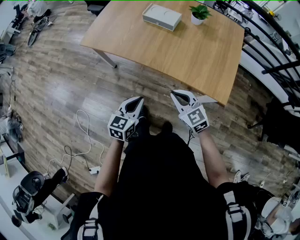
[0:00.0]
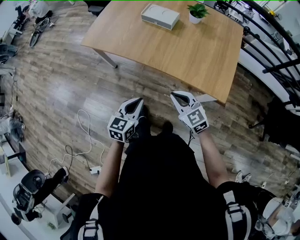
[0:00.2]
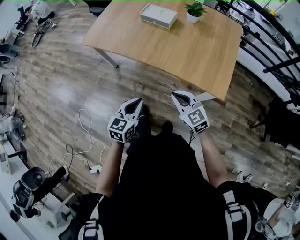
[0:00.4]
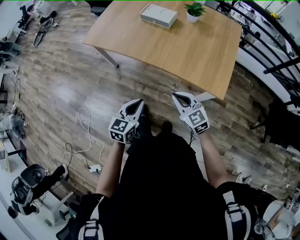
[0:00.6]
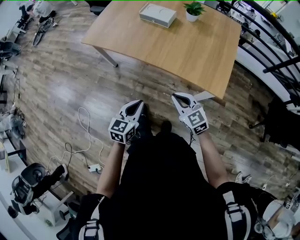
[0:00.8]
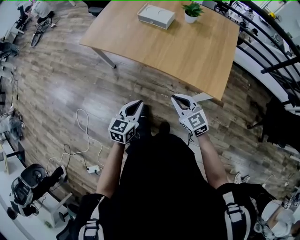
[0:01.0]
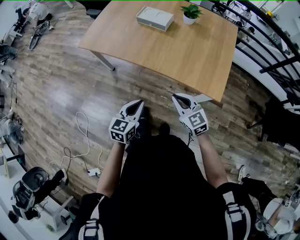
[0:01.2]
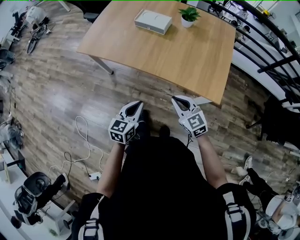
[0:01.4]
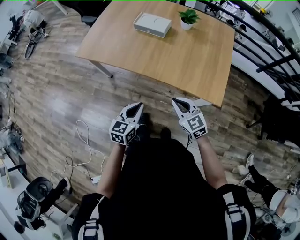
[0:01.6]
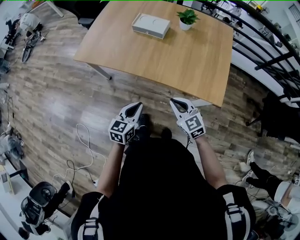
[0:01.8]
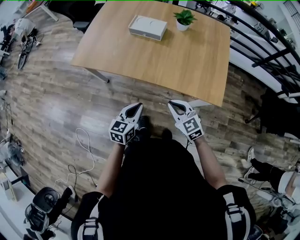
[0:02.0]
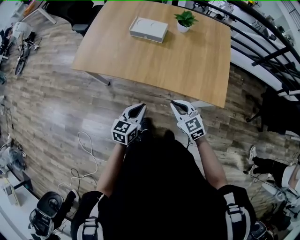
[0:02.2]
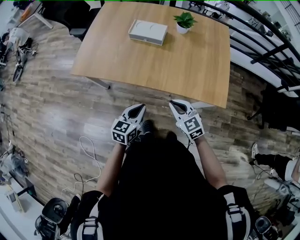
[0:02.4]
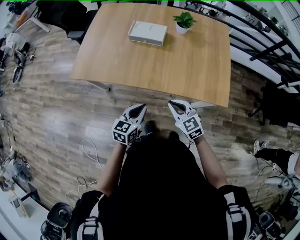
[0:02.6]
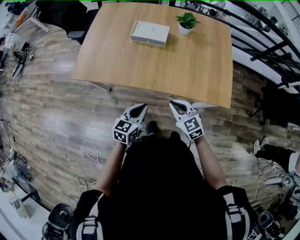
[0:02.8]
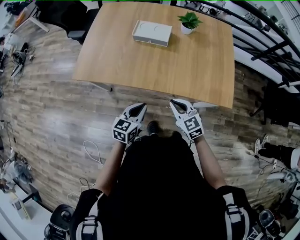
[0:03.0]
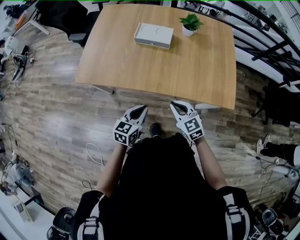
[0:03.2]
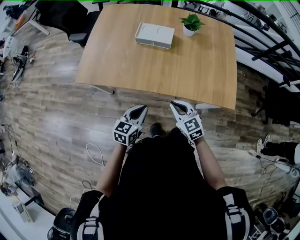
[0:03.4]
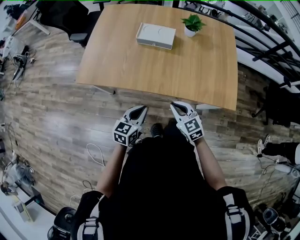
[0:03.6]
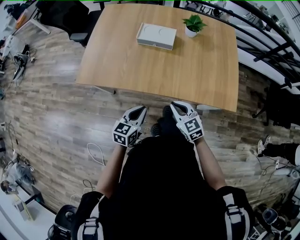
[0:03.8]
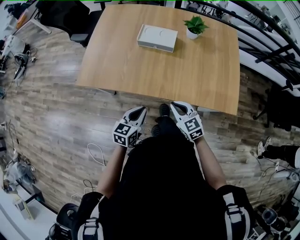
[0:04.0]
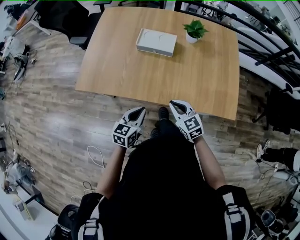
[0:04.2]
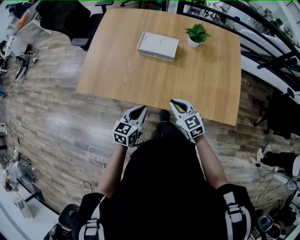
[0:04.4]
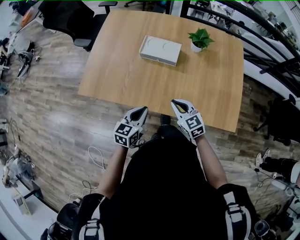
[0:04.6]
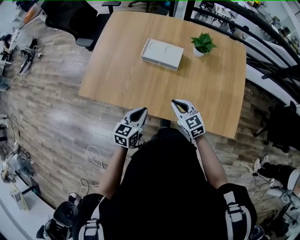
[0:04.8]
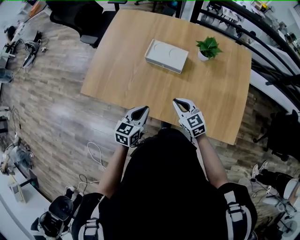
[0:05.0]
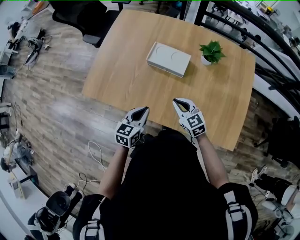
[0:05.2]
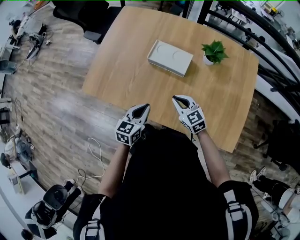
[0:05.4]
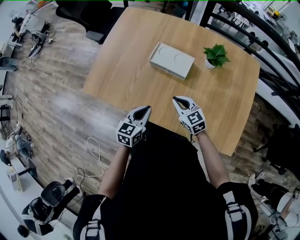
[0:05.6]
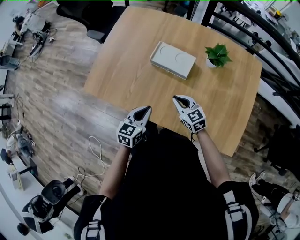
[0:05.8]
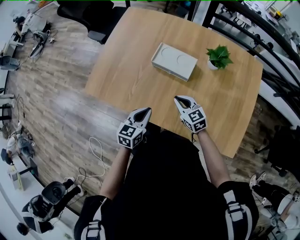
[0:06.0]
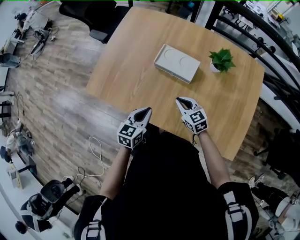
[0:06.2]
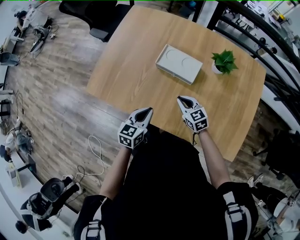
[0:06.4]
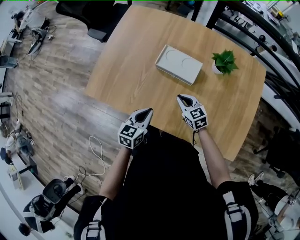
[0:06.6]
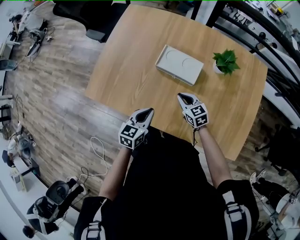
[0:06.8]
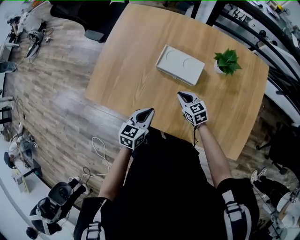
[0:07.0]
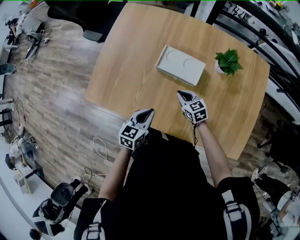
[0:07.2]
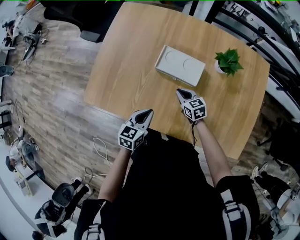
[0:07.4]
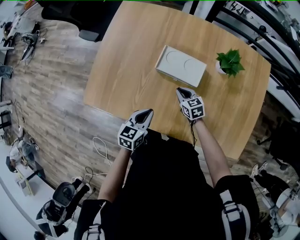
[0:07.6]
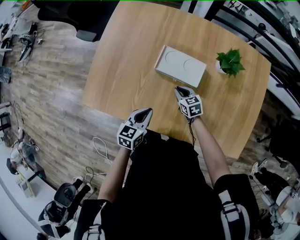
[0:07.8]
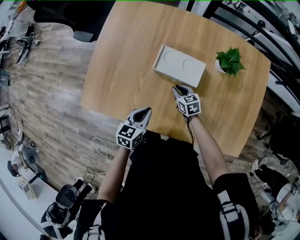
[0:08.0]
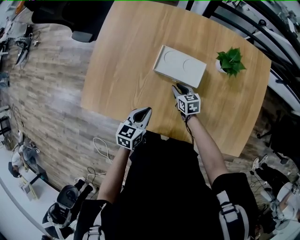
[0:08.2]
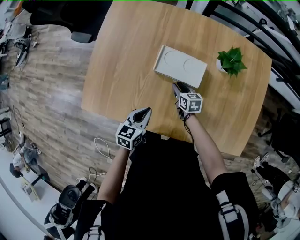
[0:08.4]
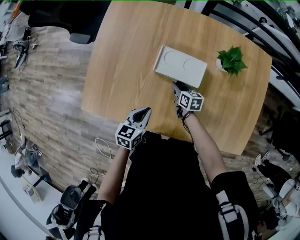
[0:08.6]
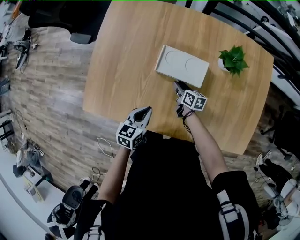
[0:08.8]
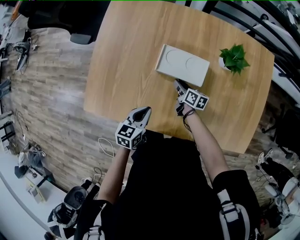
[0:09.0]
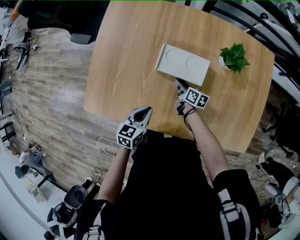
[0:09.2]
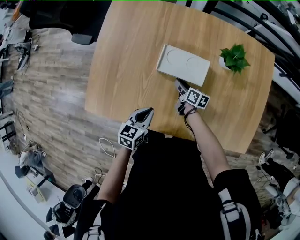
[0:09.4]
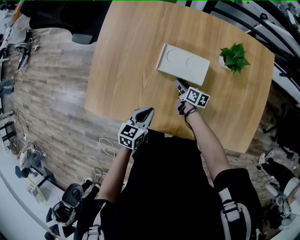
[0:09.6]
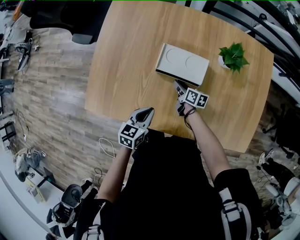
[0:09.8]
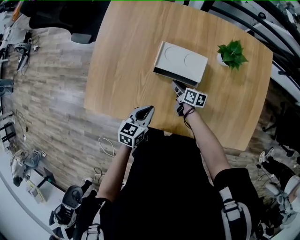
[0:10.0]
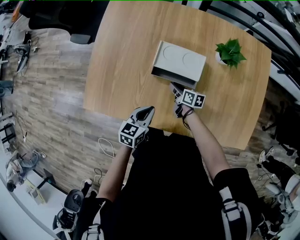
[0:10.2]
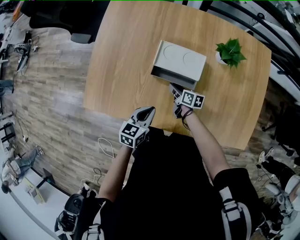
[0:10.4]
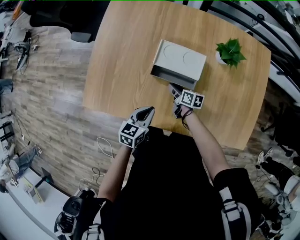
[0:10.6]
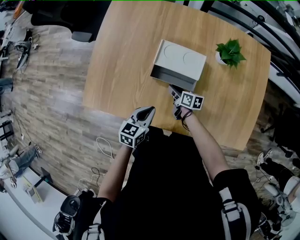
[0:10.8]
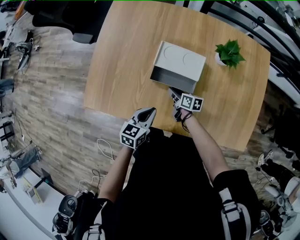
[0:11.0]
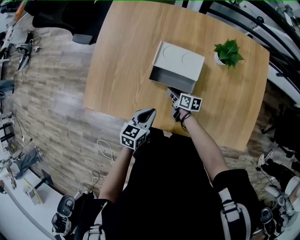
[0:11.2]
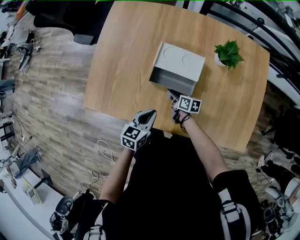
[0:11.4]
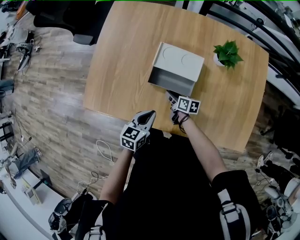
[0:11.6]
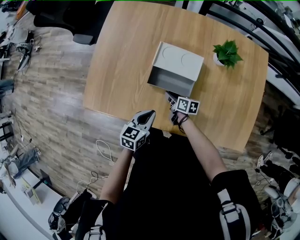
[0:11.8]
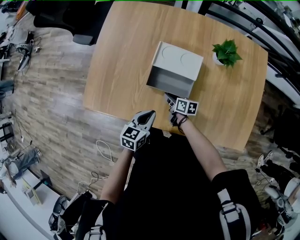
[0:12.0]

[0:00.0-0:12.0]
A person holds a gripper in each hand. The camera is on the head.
0.0 to 1.6 s: The left gripper moves about 10 cm backward and comes back.
1.6 to 3.0 s: The right gripper travels to the left and forward by about 15 cm, while the left gripper travels forward and to the left by roughly 15 cm.
3.0 to 4.4 s: The two grippers go about 10 cm forward.
4.4 to 6.0 s: Both grippers move forward, about 15 cm.
6.0 to 7.6 s: The right gripper goes some 15 cm forward and downward, while the left gripper moves forward, approximately 10 cm.
7.6 to 9.0 s: The left gripper changes place by roughly 5 cm, while the right gripper travels forward by some 5 cm, and rolls clockwise, seen from behind, by roughly 50 degrees.
9.0 to 10.4 s: The right gripper travels backward by some 5 cm.
10.4 to 12.0 s: The right gripper travels backward by about 5 cm.

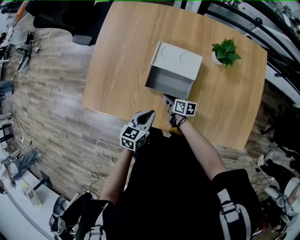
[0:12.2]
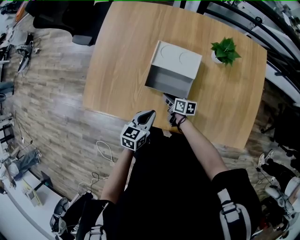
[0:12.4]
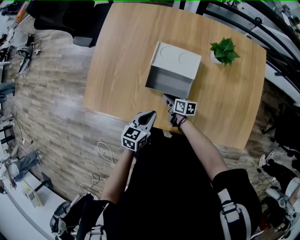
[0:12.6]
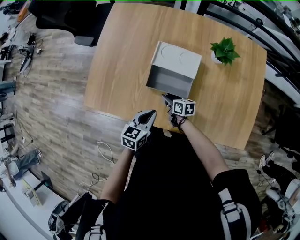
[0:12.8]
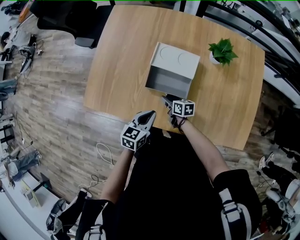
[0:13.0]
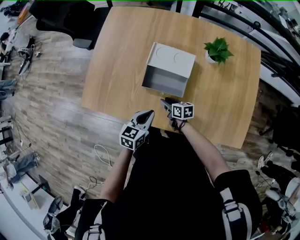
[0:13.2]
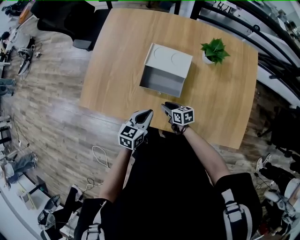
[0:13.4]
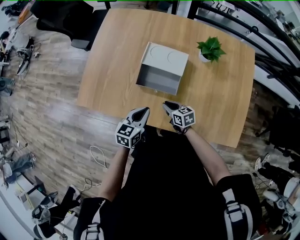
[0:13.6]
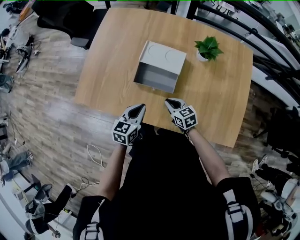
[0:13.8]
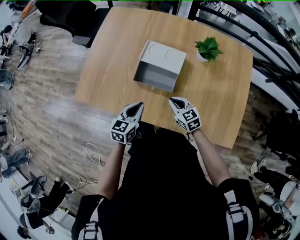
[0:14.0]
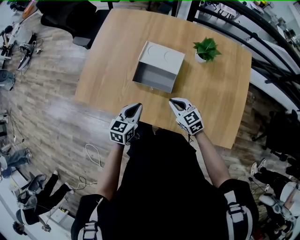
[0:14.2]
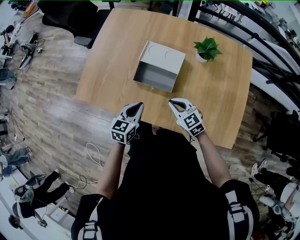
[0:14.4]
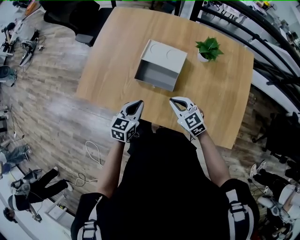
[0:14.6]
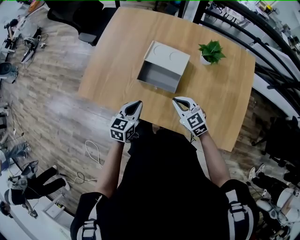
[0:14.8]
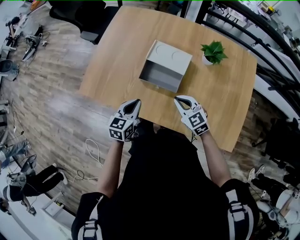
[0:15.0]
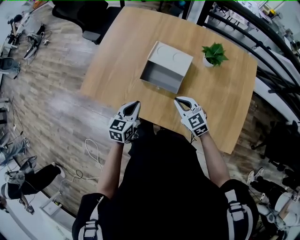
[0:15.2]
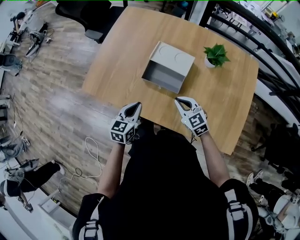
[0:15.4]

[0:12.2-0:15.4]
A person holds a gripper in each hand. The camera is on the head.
12.2 to 13.8 s: The right gripper travels upward, to the right and backward by about 15 cm, and rolls counterclockwise, seen from behind, by about 40 degrees.
13.8 to 15.4 s: The right gripper moves upward, some 10 cm, and turns by approximately 30 degrees. Meanwhile the left gripper ends up approximately 5 cm from where it was.

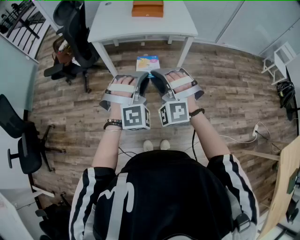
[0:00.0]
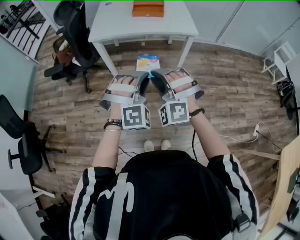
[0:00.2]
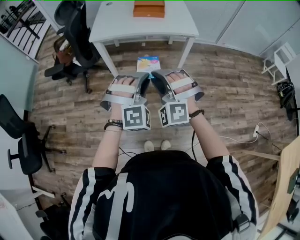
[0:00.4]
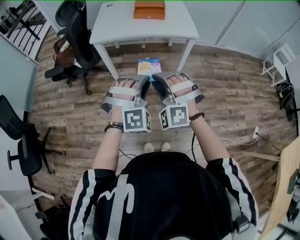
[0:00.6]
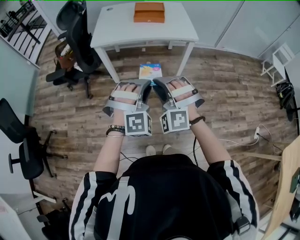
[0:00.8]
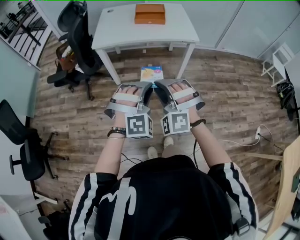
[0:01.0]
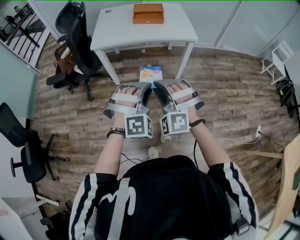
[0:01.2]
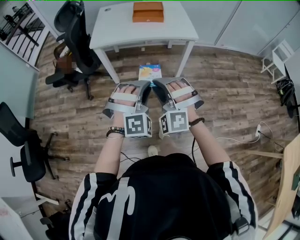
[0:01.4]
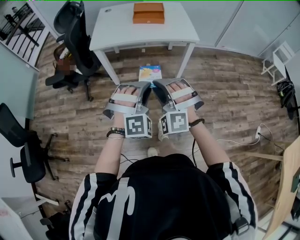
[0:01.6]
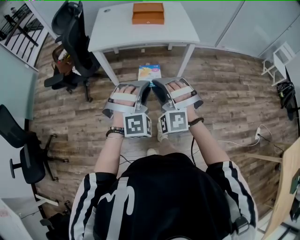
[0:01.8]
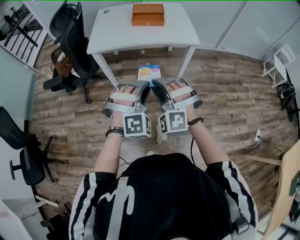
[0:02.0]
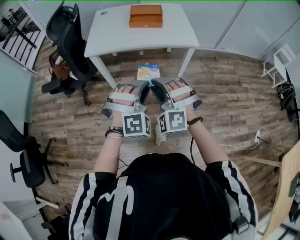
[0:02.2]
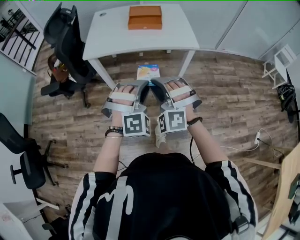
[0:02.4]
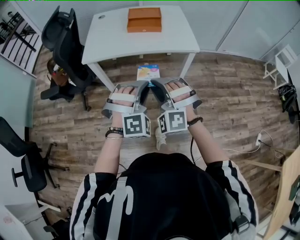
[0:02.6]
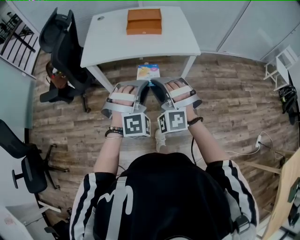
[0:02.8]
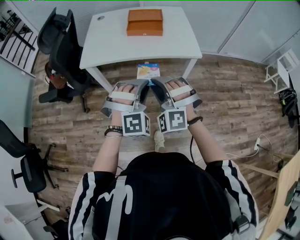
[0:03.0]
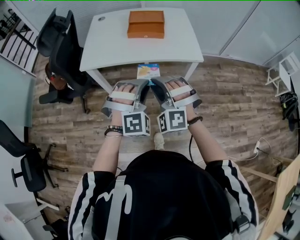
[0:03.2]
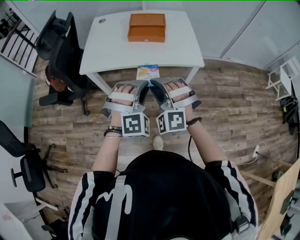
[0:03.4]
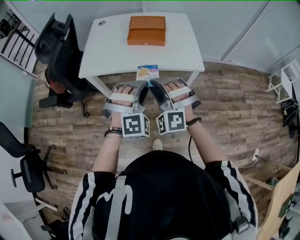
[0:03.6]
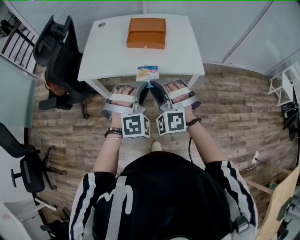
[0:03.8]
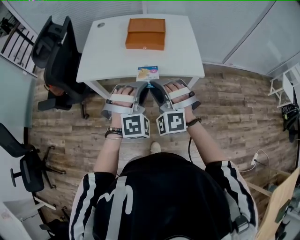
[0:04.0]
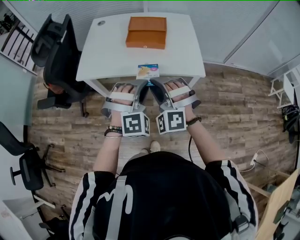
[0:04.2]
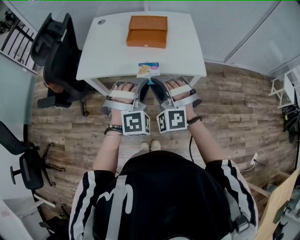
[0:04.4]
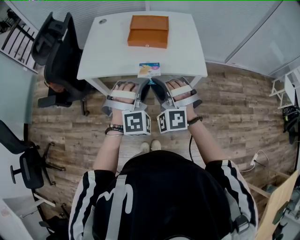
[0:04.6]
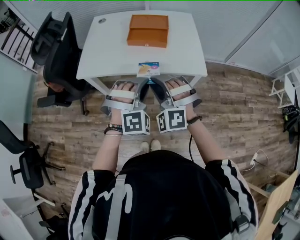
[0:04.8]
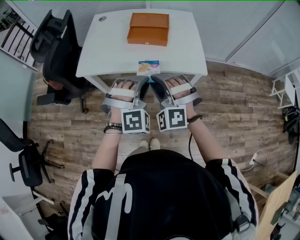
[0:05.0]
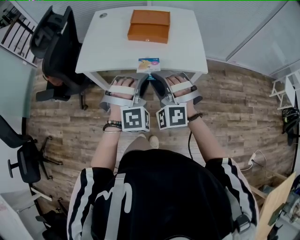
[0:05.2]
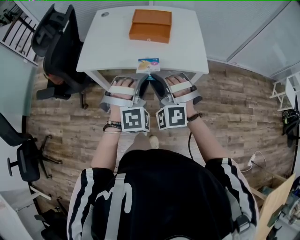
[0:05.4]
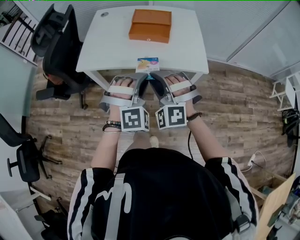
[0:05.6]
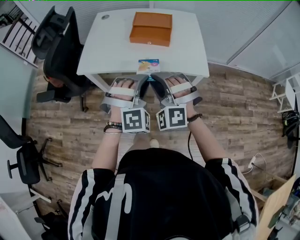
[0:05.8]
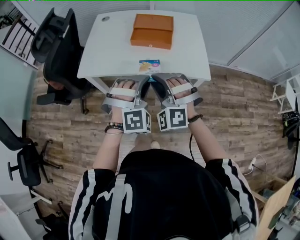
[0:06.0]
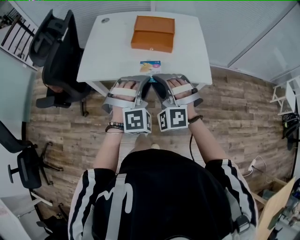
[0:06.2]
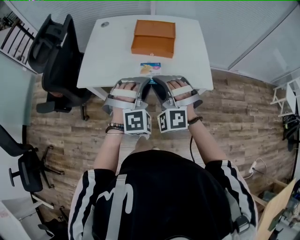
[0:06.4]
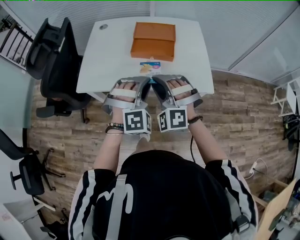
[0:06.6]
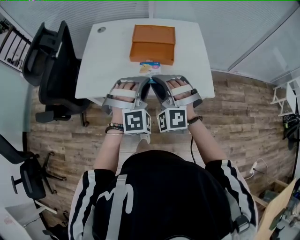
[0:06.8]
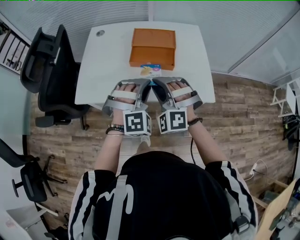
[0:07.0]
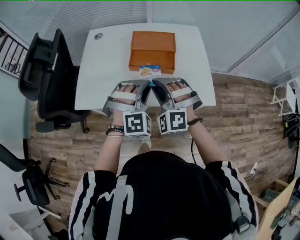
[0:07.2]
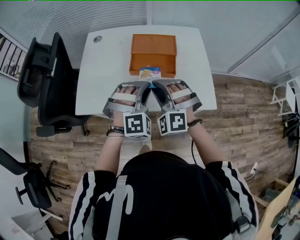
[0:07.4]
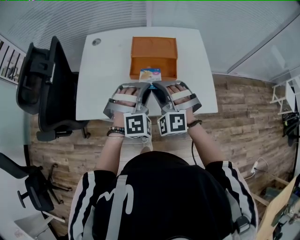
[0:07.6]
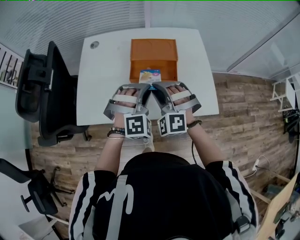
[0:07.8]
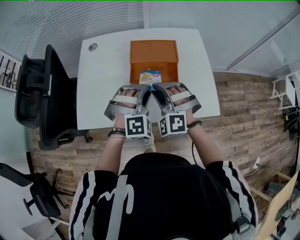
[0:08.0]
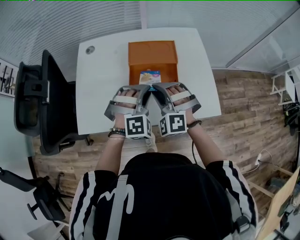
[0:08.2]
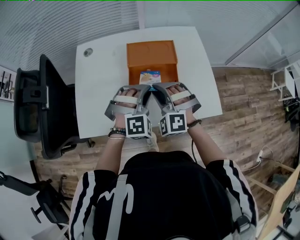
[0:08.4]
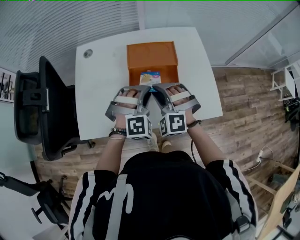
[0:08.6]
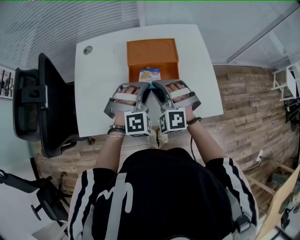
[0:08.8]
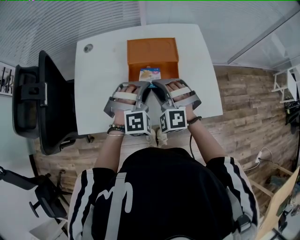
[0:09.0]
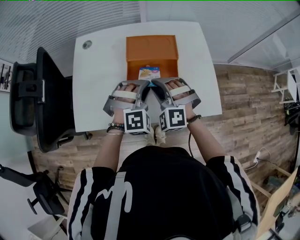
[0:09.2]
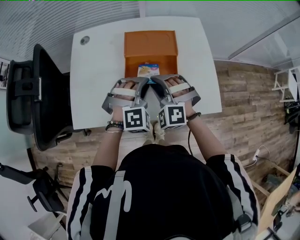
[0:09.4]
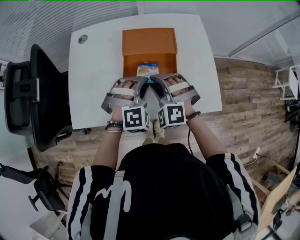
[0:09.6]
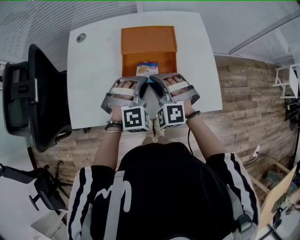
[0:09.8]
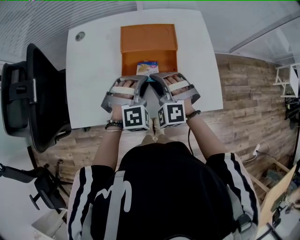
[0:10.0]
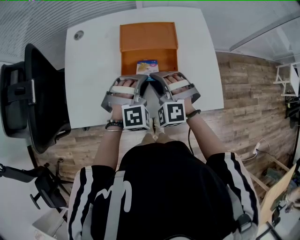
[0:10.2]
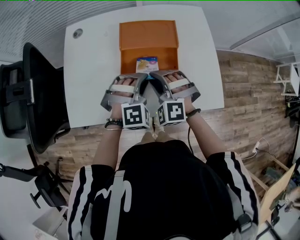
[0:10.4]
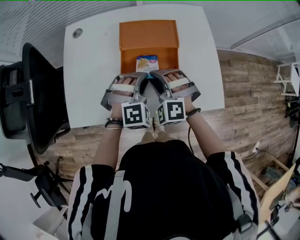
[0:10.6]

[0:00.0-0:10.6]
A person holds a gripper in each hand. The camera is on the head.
0.0 to 1.6 s: There are only small adjustments of the grippers.
1.6 to 3.0 s: Both grippers travel together forward, some 20 cm.
3.0 to 4.6 s: The two grippers go some 15 cm forward.
4.6 to 6.0 s: There are only small adjustments of the grippers.
6.0 to 7.6 s: The grippers both shift forward by about 20 cm.
7.6 to 9.0 s: The grippers both shift forward by roughly 5 cm.
9.0 to 10.6 s: The right gripper moves downward, approximately 5 cm. Meanwhile the left gripper shifts by approximately 5 cm.
